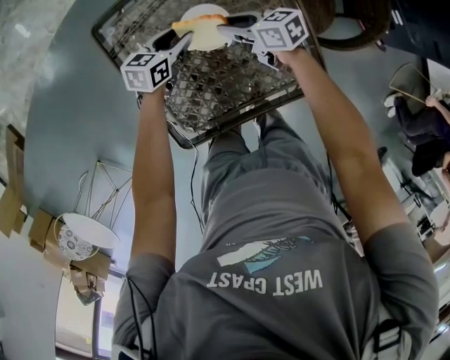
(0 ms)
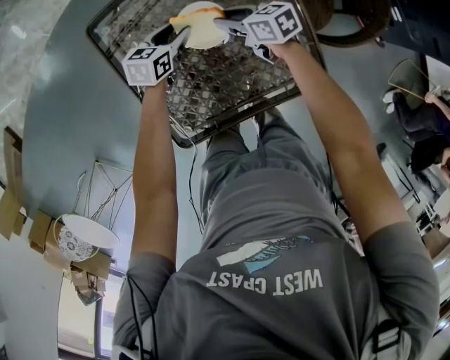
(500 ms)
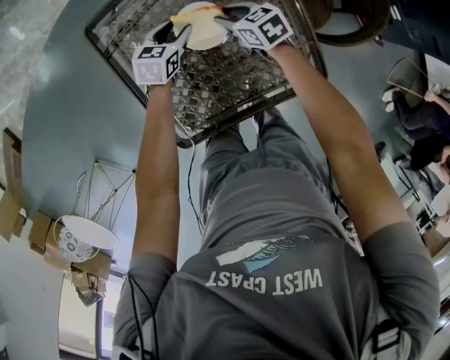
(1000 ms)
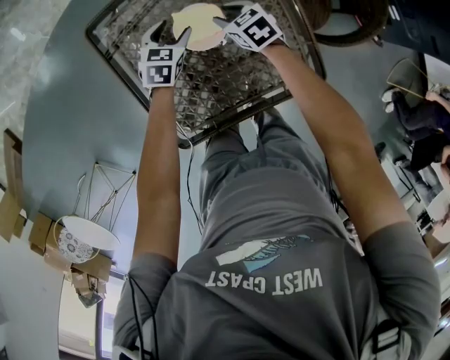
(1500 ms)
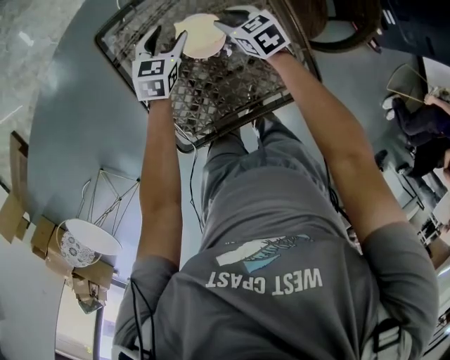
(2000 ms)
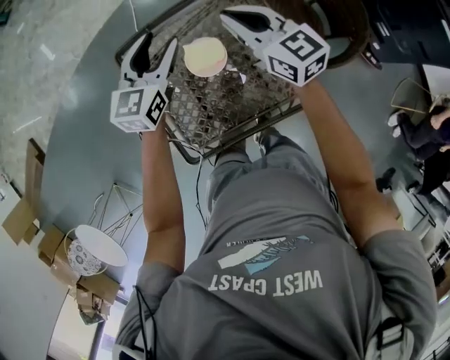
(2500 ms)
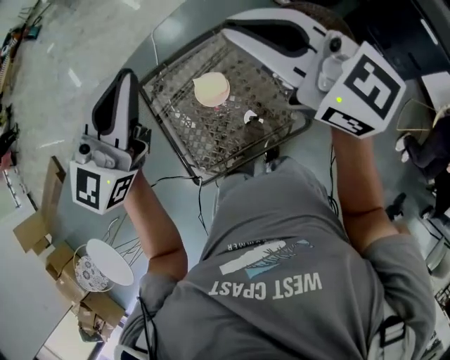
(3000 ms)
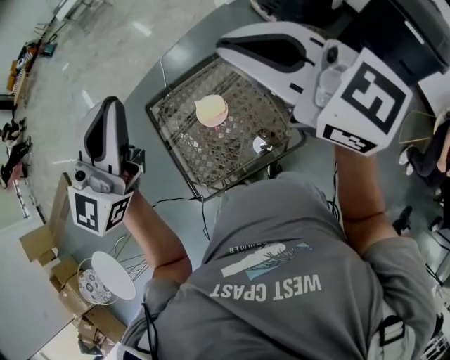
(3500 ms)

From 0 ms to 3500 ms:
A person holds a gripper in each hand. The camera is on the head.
From 0 ms to 2000 ms: The right gripper turns by about 30 degrees. Meanwhile the left gripper moves approximately 5 cm, and changes its angle by roughly 20 degrees.
From 2000 ms to 3500 ms: Both grippers move upward, approximately 60 cm. The left gripper tips its fingers upward by approximately 50 degrees, and closes its fingers; the right gripper tips its fingers upward by some 40 degrees, and closes.

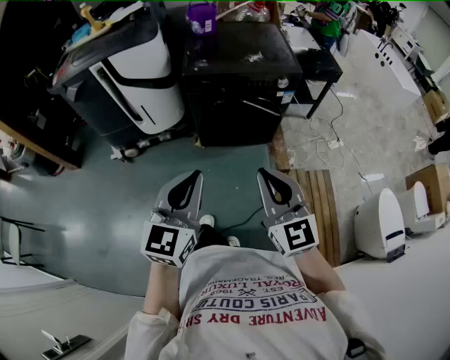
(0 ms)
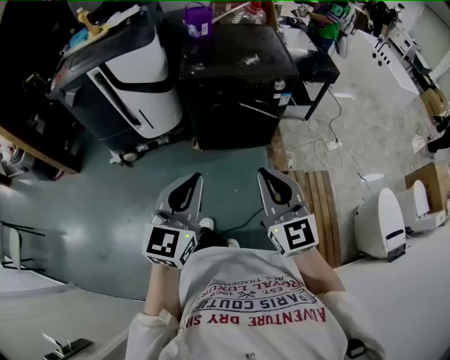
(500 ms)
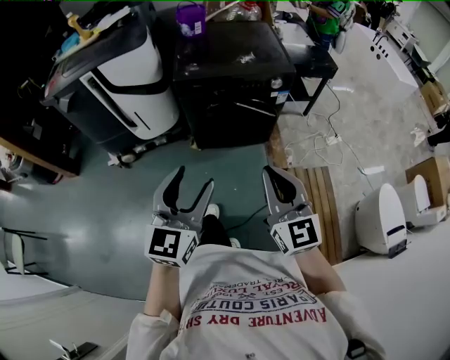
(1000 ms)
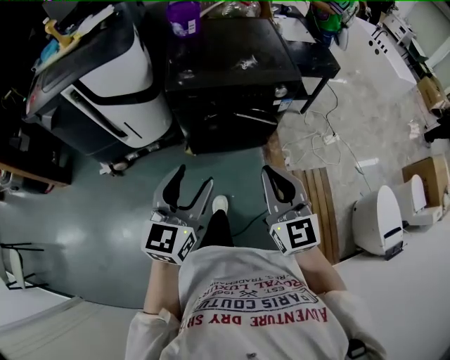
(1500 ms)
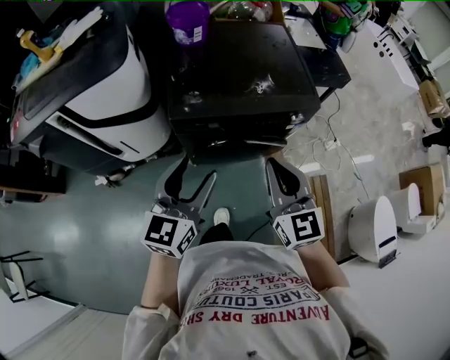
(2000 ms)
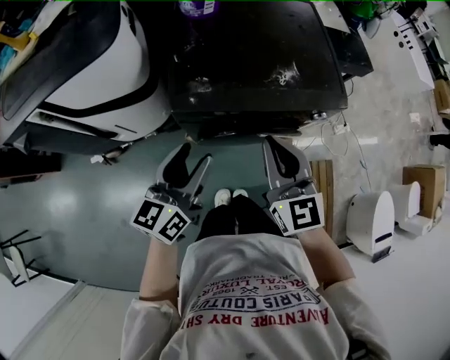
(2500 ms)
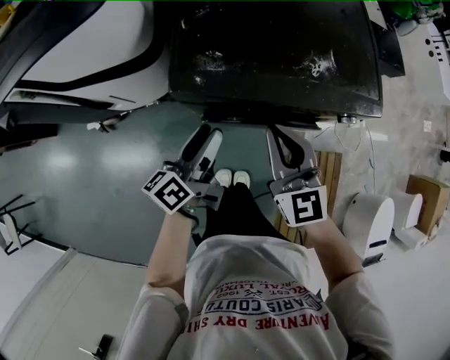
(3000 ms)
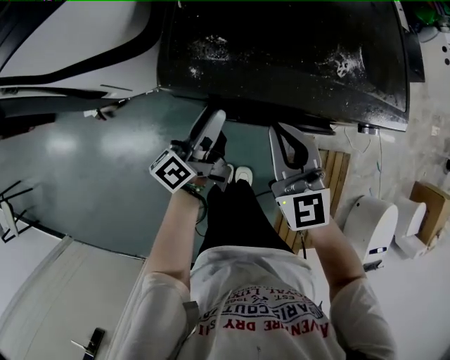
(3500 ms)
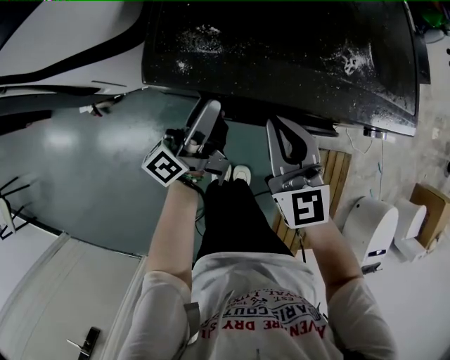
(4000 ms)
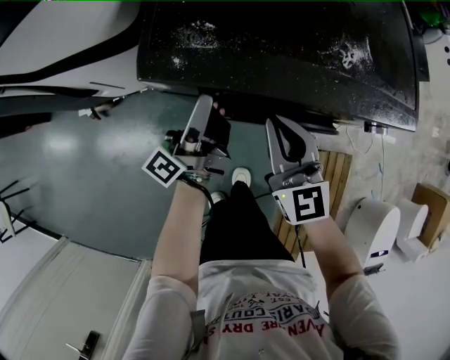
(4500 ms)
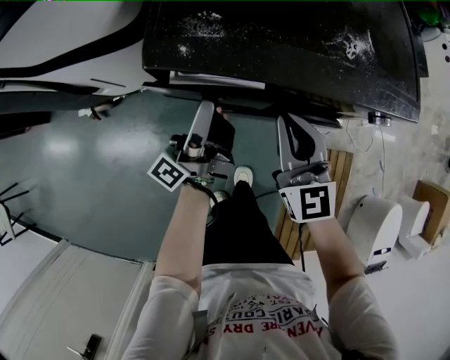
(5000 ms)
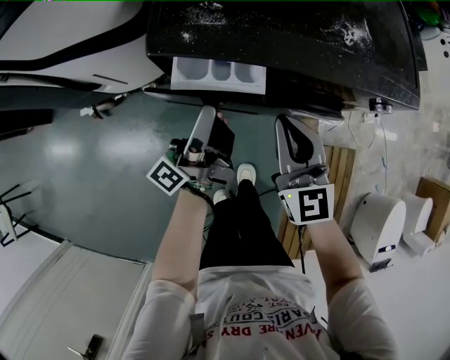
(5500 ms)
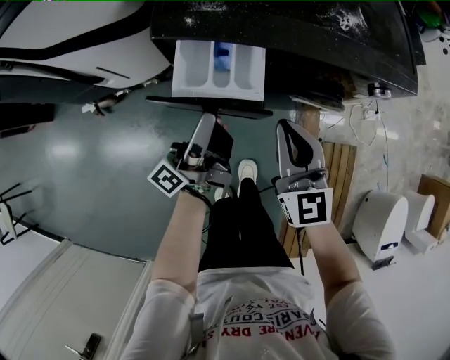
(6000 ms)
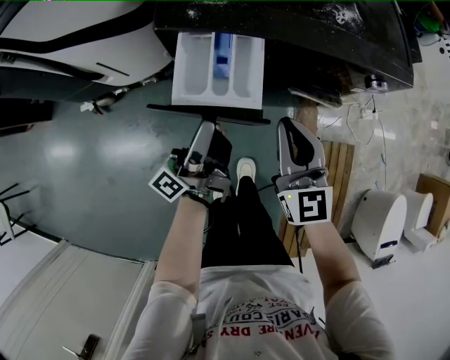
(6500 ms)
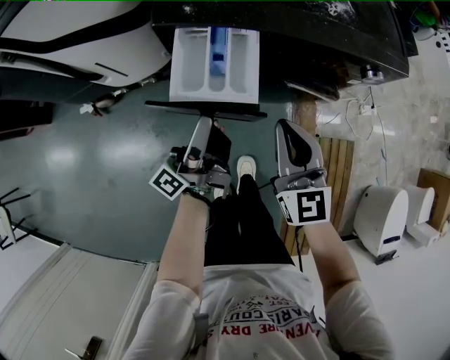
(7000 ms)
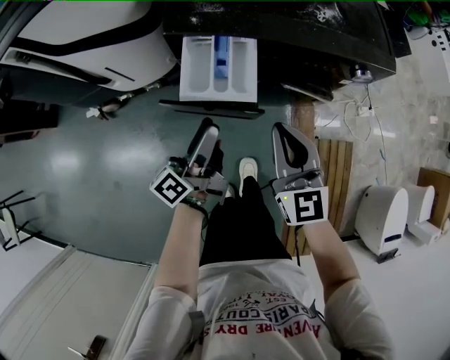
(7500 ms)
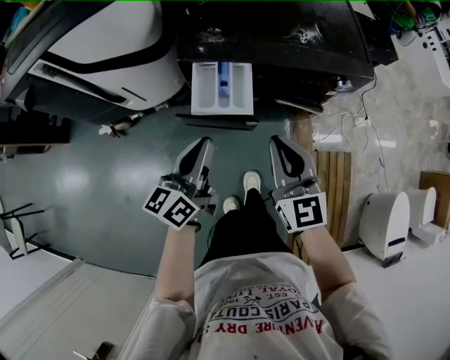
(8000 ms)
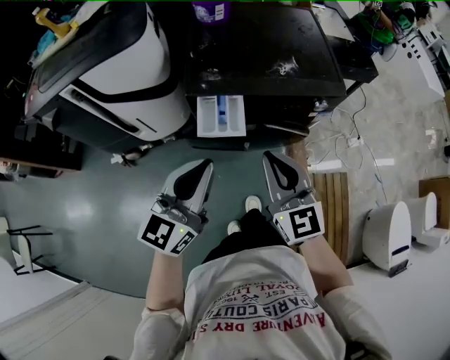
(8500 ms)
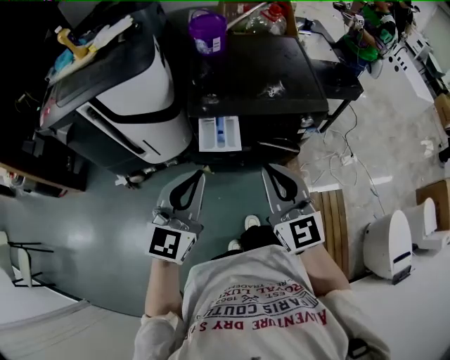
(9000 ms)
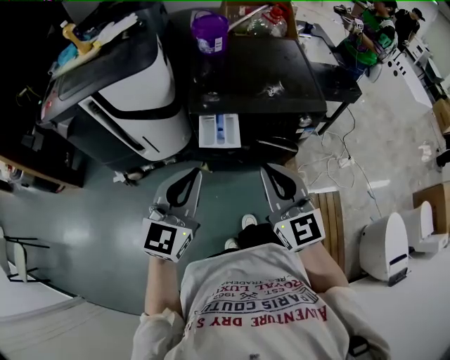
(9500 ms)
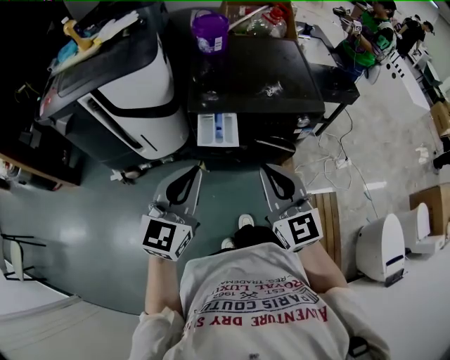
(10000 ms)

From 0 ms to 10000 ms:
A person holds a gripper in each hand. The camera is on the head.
From 0 ms to 2000 ms: Both grippers move forward, about 35 cm. The left gripper opens up.
From 2000 ms to 4000 ms: The grippers both shift downward and forward by approximately 30 cm. The left gripper rolls counterclockwise, seen from behind, by some 60 degrees.
From 4000 ms to 6000 ms: The grippers both shift backward by about 10 cm.
From 6000 ms to 8000 ms: Both grippers travel together upward and backward, approximately 15 cm. The left gripper swivels some 50 degrees, and closes.
From 8000 ms to 10000 ms: Both grippers move upward and backward, about 20 cm. The left gripper twists approximately 40 degrees clockwise, seen from behind.

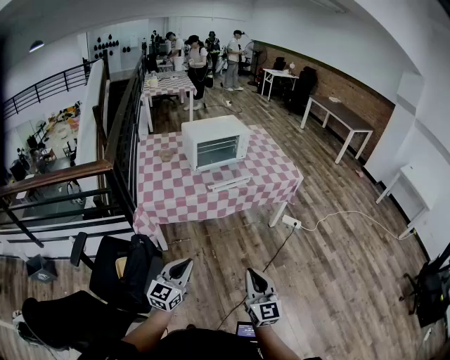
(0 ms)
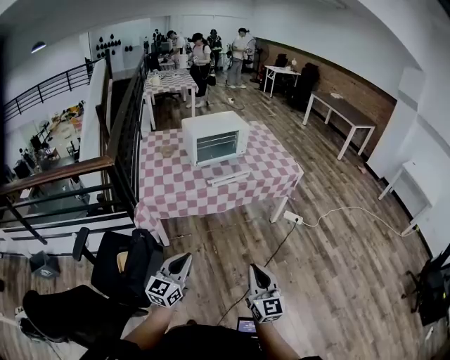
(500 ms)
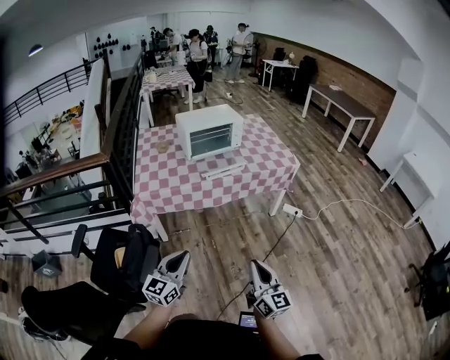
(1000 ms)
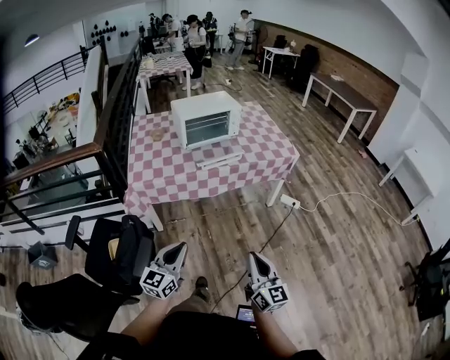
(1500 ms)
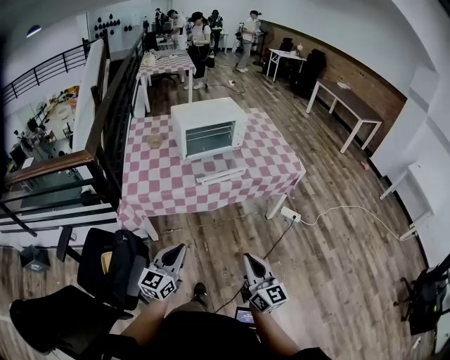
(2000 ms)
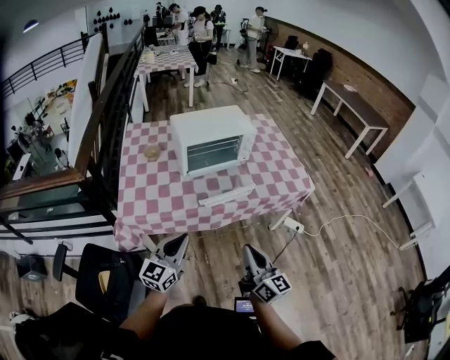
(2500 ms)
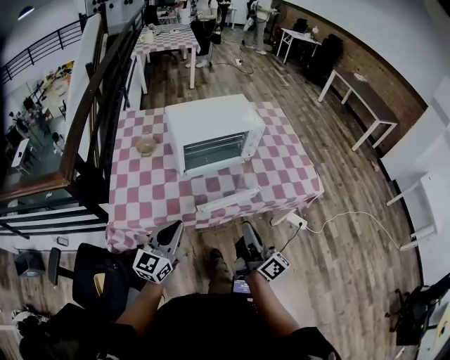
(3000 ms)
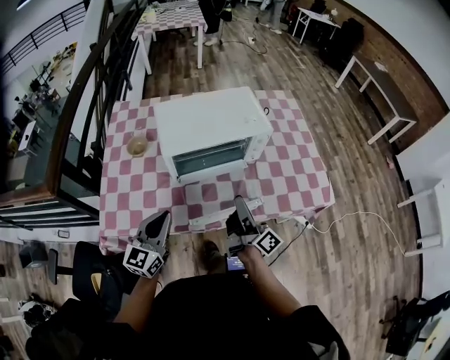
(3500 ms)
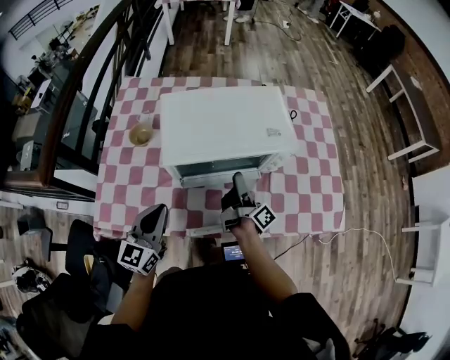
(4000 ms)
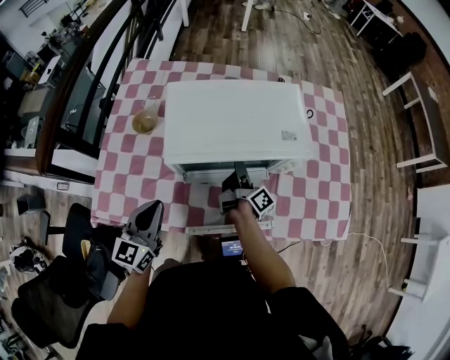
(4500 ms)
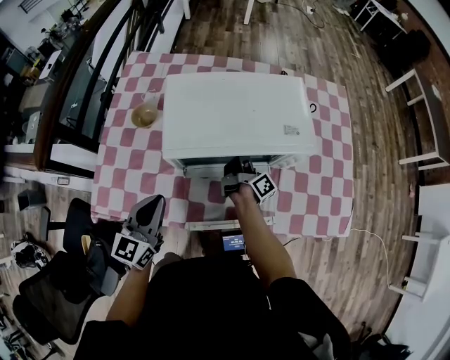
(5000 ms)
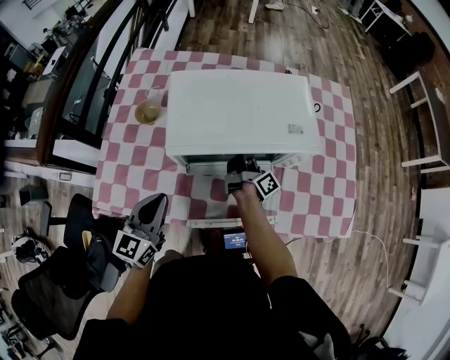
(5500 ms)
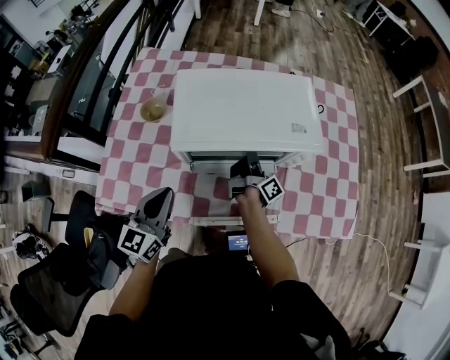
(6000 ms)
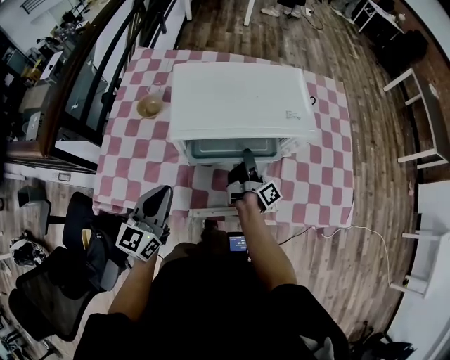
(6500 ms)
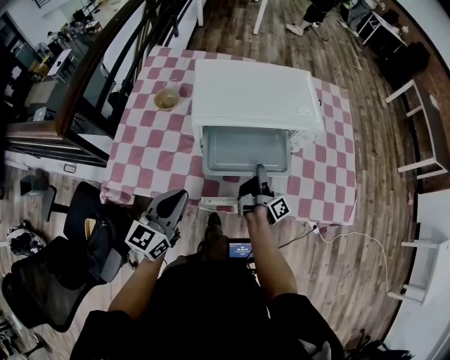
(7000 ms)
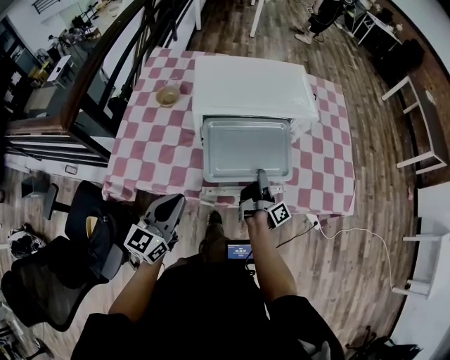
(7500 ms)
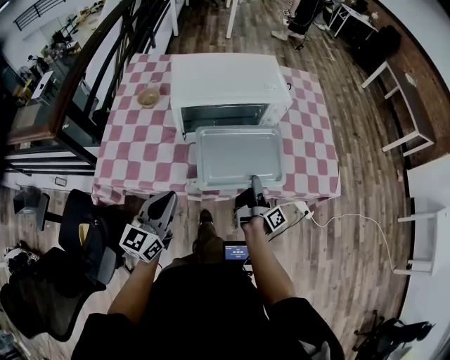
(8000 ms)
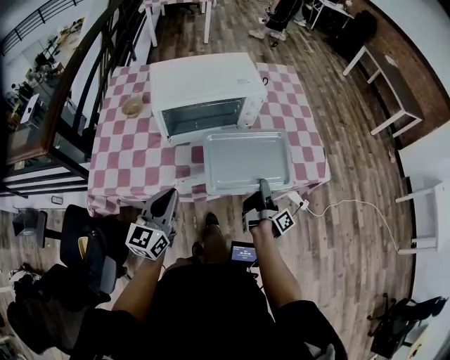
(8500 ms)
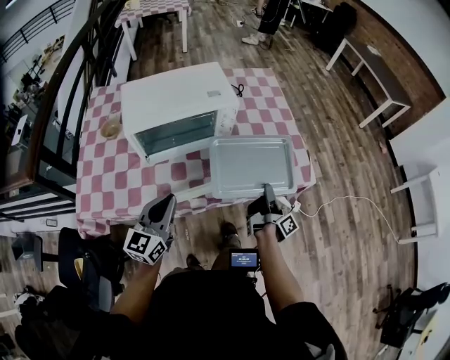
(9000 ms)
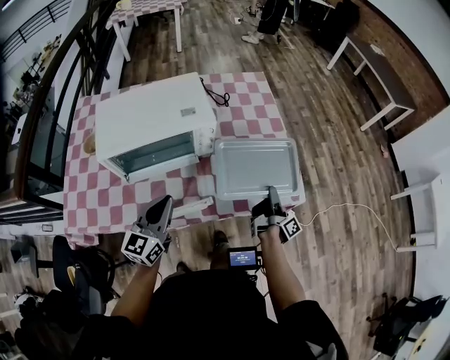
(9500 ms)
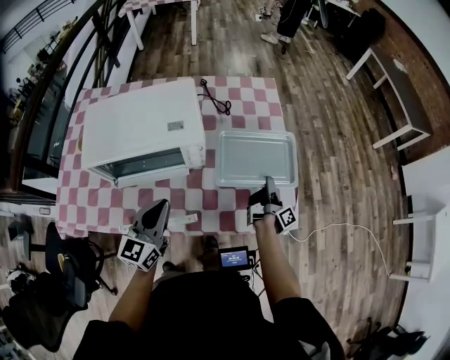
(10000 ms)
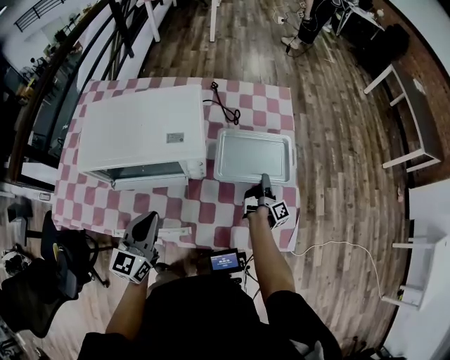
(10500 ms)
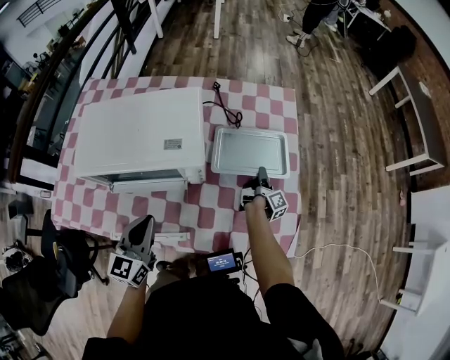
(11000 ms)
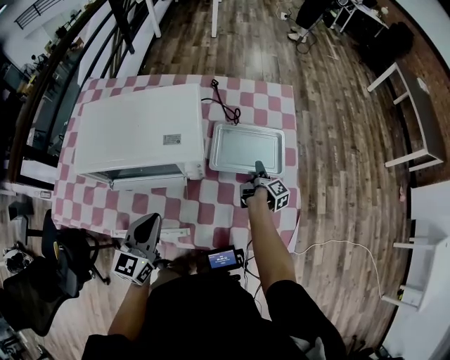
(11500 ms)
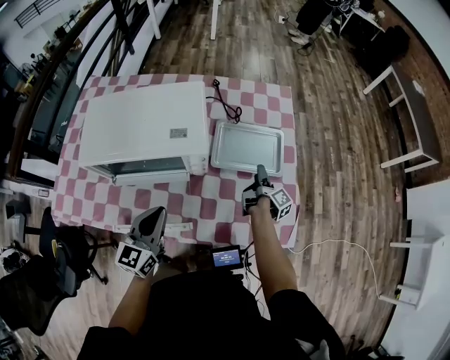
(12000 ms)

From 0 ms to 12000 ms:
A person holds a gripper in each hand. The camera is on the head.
From 0 ms to 2000 ms: The right gripper heads forward and to the right, covering roughly 15 cm, and rotates roughly 20 degrees. Meanwhile the left gripper shifts about 10 cm forward.
From 2000 ms to 4000 ms: The two grippers travel together, forward, roughly 50 cm. The right gripper rotates around the line of its fingers by about 70 degrees, clockwise from behind, and opens its fingers. The left gripper changes its angle by about 20 degrees.
From 4000 ms to 6000 ms: The right gripper moves forward and downward, approximately 10 cm.
From 6000 ms to 8000 ms: The left gripper travels backward by some 15 cm. The right gripper shifts about 30 cm backward and to the right.
From 8000 ms to 10000 ms: The right gripper is displaced to the right and forward by about 40 cm. The left gripper shifts approximately 30 cm forward and to the right.
From 10000 ms to 12000 ms: The right gripper travels forward and to the left by some 10 cm, swivels approximately 20 degrees, and opens.

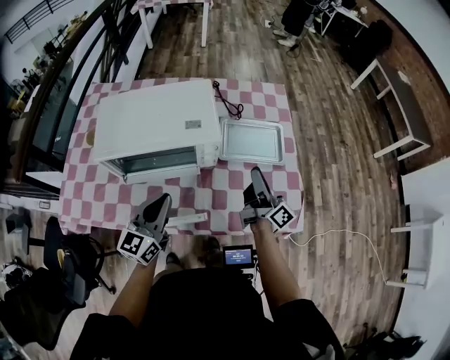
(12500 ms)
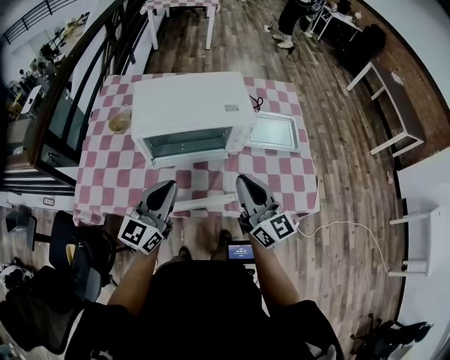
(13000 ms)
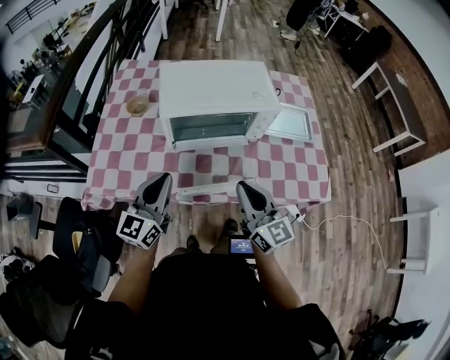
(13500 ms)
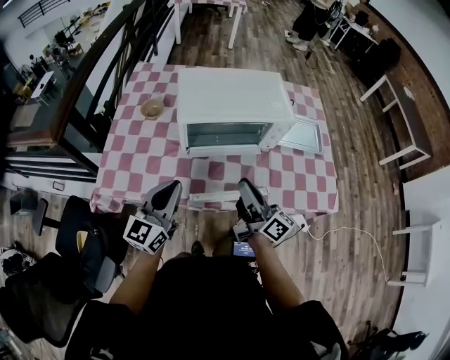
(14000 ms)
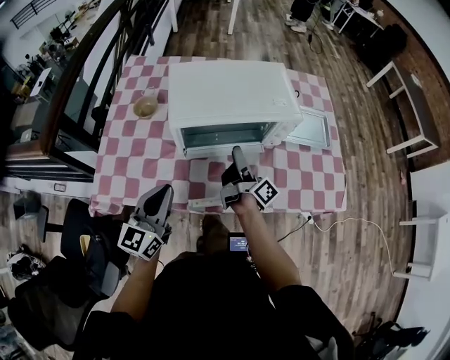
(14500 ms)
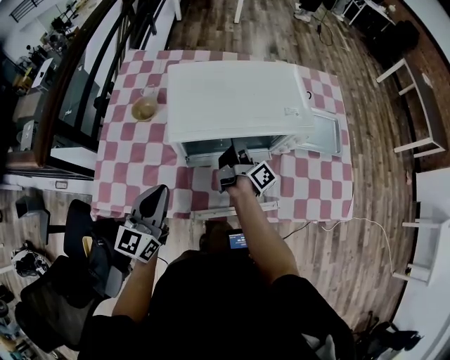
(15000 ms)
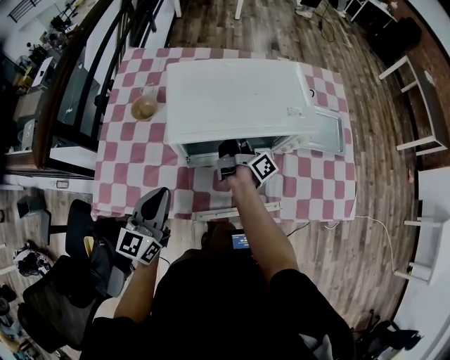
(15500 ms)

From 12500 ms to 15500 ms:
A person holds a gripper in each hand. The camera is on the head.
From 12500 ms to 14000 ms: The two grippers go about 30 cm to the left and backward.
From 14000 ms to 15500 ms: The right gripper is displaced forward by about 30 cm, and changes its angle by about 40 degrees, while the left gripper moves forward and downward, approximately 10 cm.
